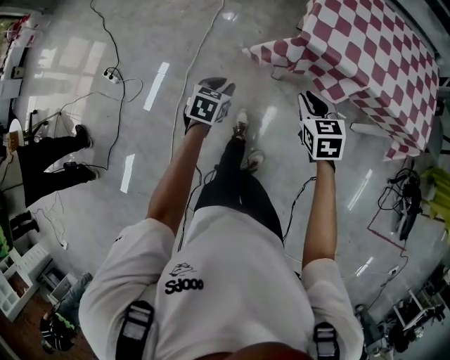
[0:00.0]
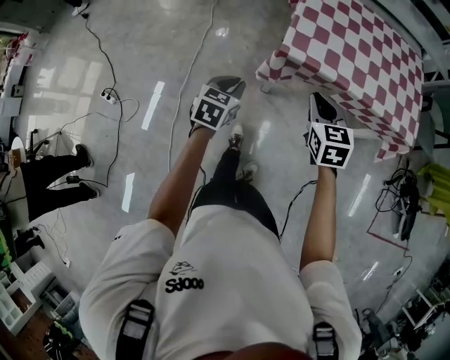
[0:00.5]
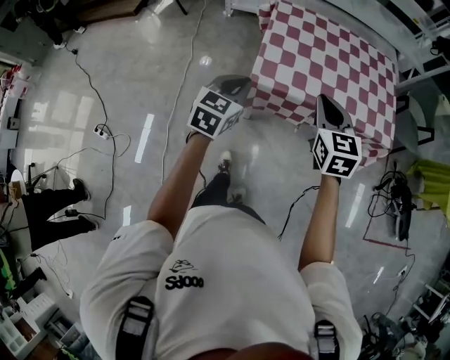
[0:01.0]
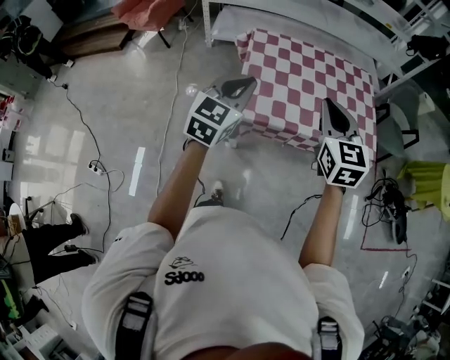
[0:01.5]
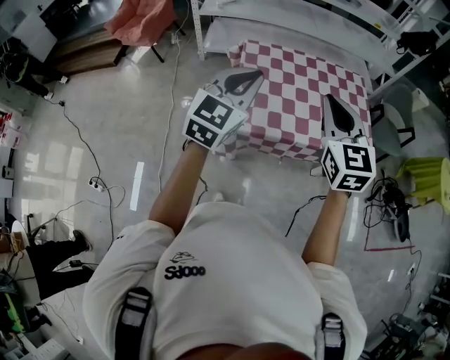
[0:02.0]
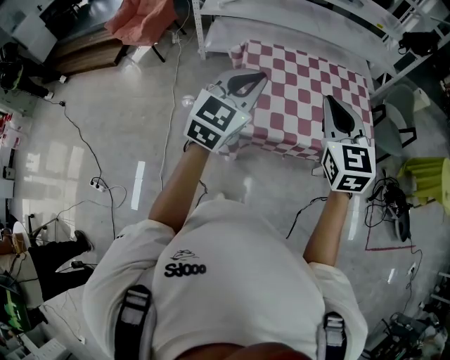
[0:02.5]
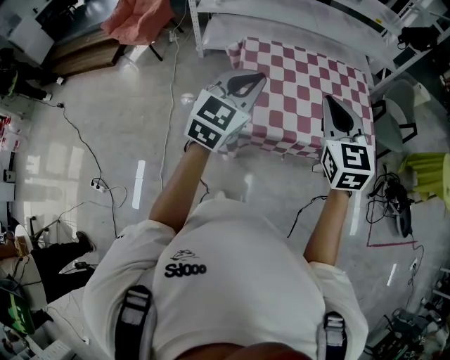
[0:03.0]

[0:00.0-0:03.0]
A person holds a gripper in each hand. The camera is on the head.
0:00.0 to 0:01.5: The left gripper is displaced upward, forward and to the right by approximately 50 cm, and tips its fingers upward by about 40 degrees; the right gripper goes some 40 cm upward, to the right and forward, and rotates roughly 40 degrees.
0:01.5 to 0:03.0: The left gripper goes some 5 cm upward.

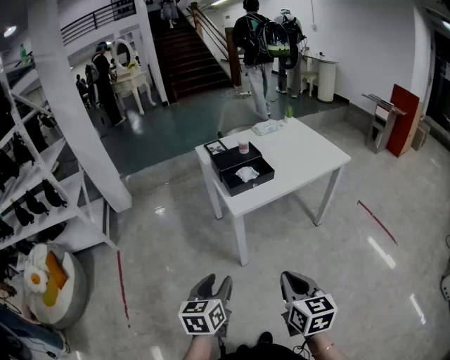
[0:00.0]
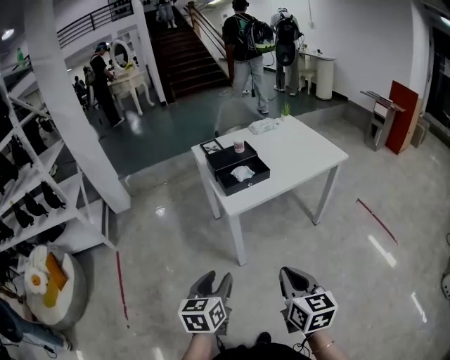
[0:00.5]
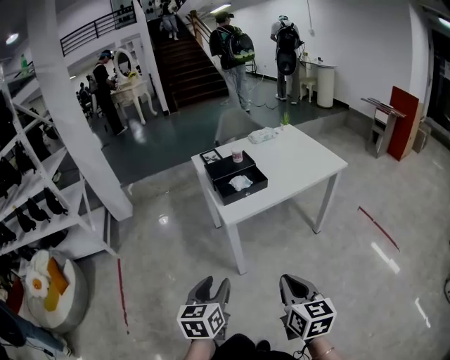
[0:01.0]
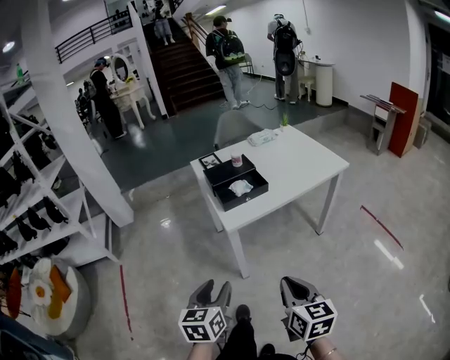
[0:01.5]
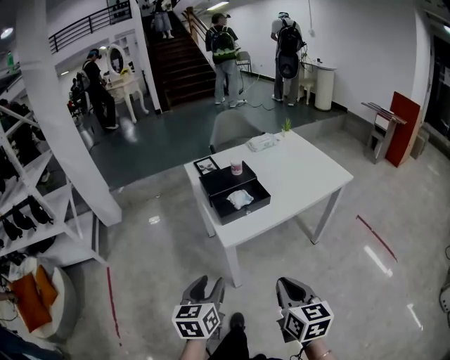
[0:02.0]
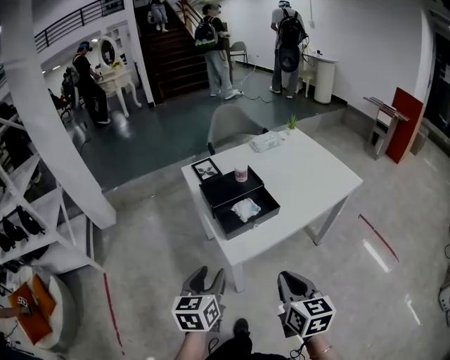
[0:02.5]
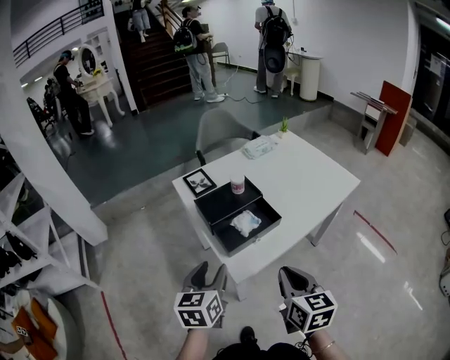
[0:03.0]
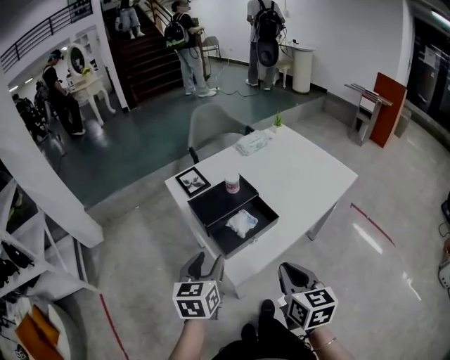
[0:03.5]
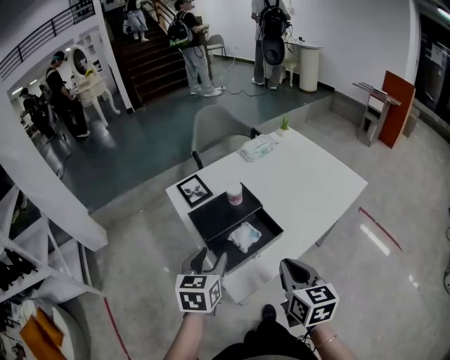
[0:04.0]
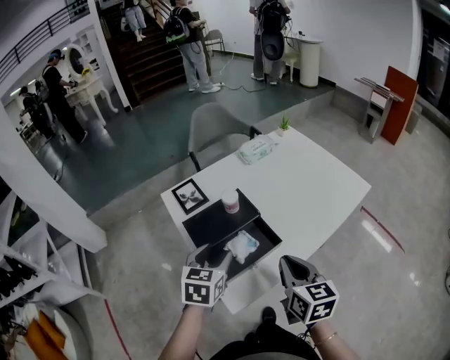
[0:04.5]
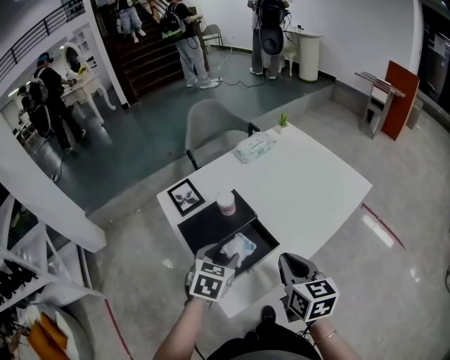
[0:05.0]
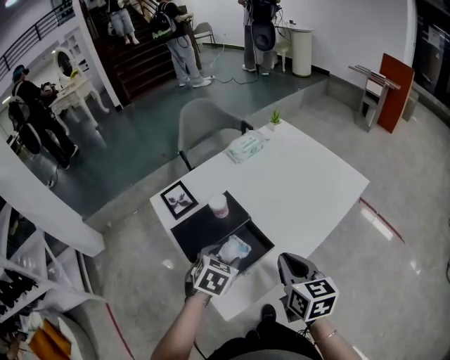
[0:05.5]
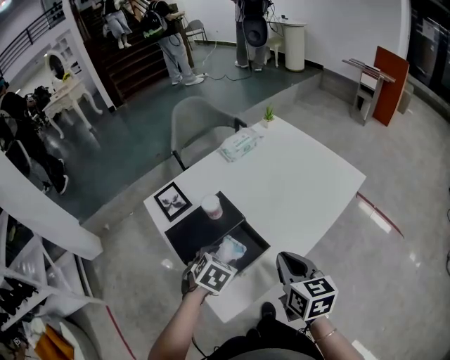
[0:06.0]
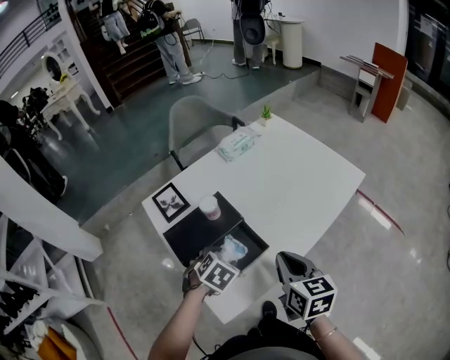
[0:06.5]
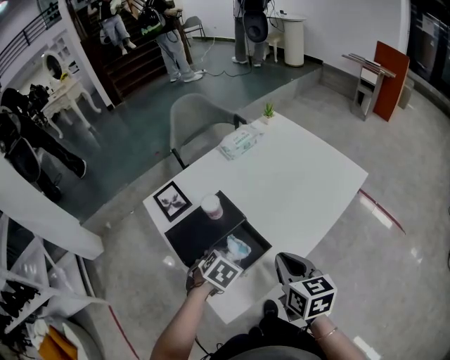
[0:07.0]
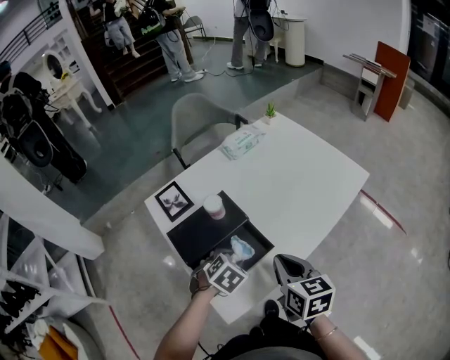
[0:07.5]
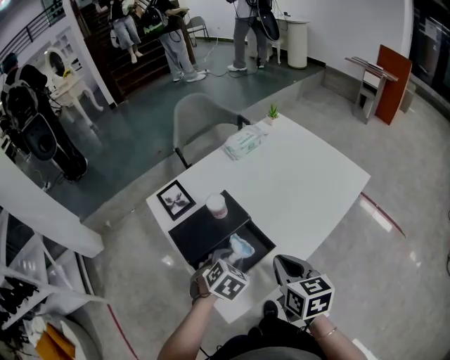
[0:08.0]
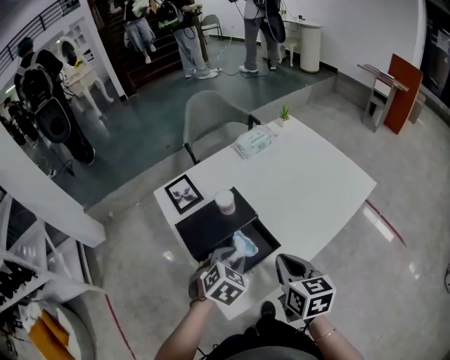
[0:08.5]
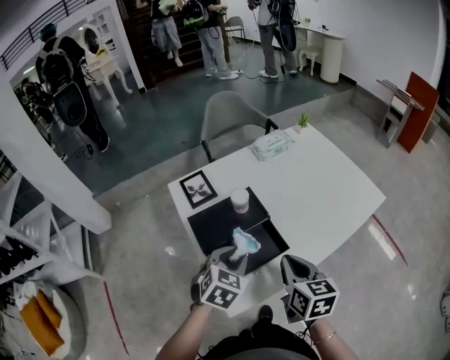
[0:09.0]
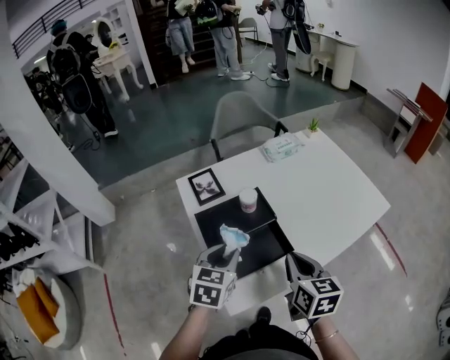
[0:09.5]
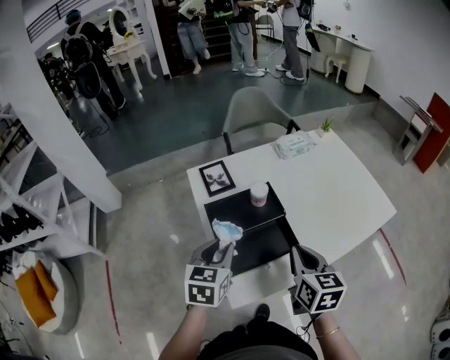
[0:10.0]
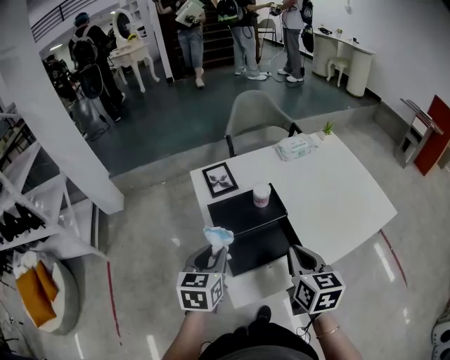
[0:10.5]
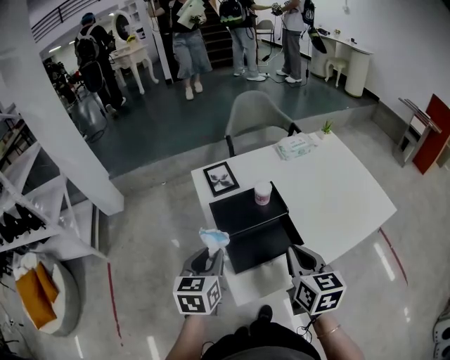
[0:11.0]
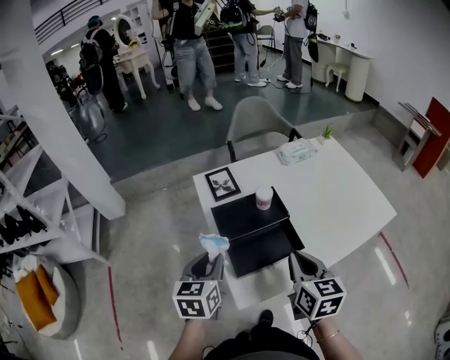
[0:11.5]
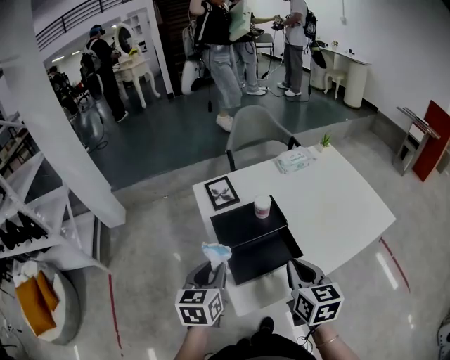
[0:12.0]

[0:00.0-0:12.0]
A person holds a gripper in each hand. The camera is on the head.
0:00.0 to 0:02.0: Both grippers travel together forward, about 15 cm.
0:02.0 to 0:04.0: Both grippers move forward, about 30 cm.
0:04.0 to 0:06.0: The left gripper moves downward, forward and to the right, approximately 15 cm, and tilts its fingers roughly 30 degrees downward. The right gripper travels forward by roughly 10 cm.
0:06.0 to 0:08.0: The left gripper closes up.
0:08.0 to 0:10.0: The left gripper shifts approximately 15 cm to the left and upward, and rotates about 50 degrees.
0:10.0 to 0:12.0: The left gripper ends up some 5 cm from where it was.

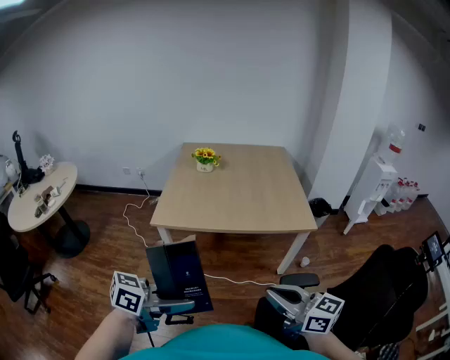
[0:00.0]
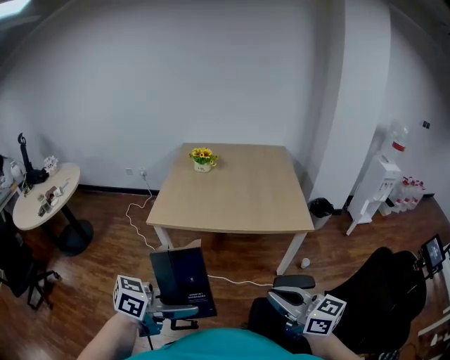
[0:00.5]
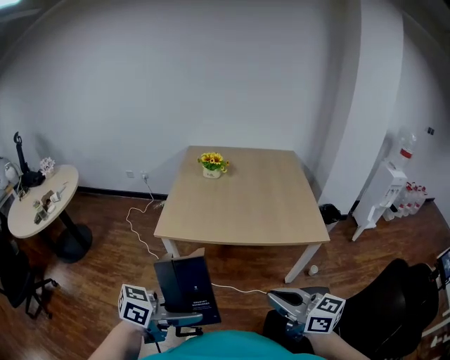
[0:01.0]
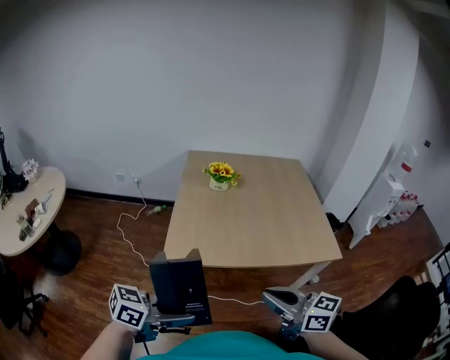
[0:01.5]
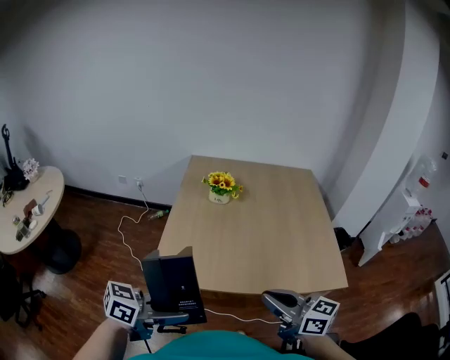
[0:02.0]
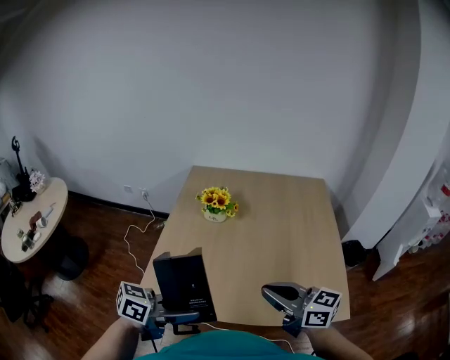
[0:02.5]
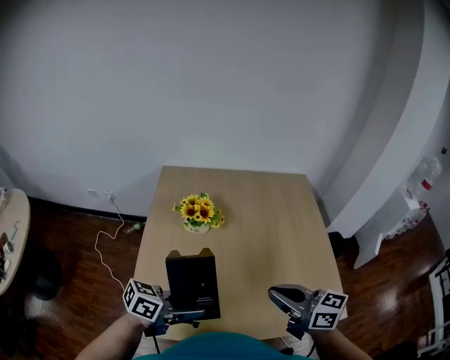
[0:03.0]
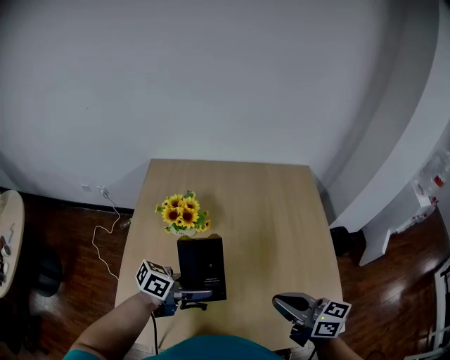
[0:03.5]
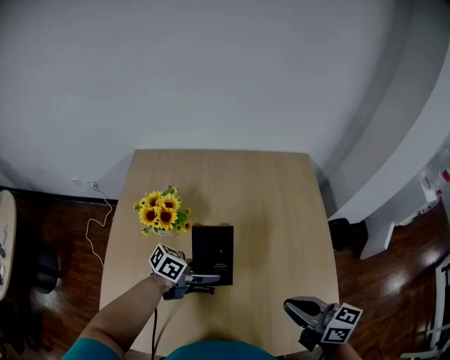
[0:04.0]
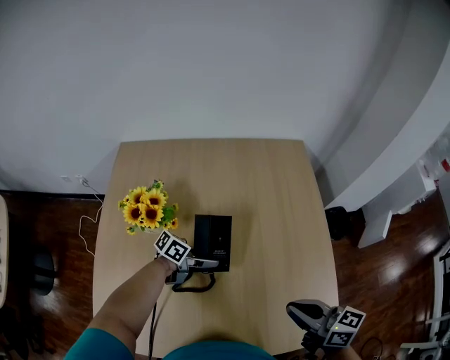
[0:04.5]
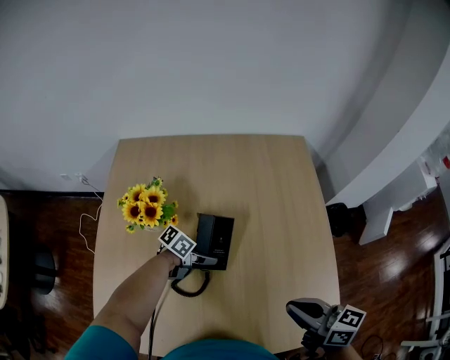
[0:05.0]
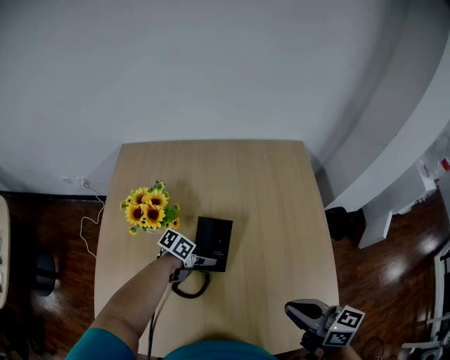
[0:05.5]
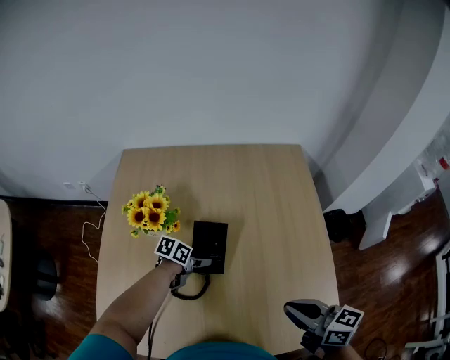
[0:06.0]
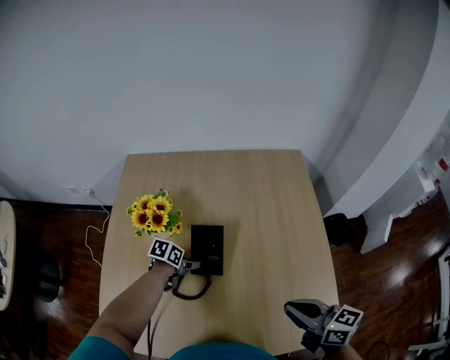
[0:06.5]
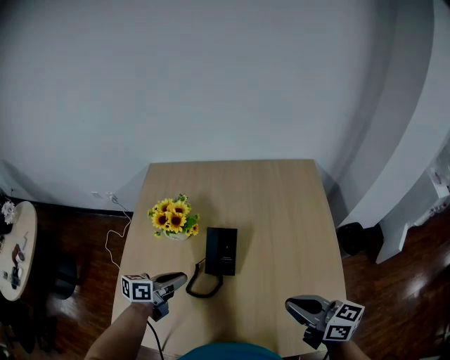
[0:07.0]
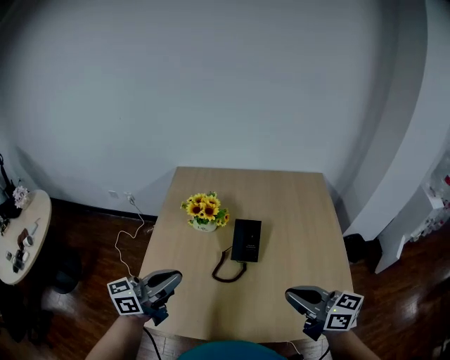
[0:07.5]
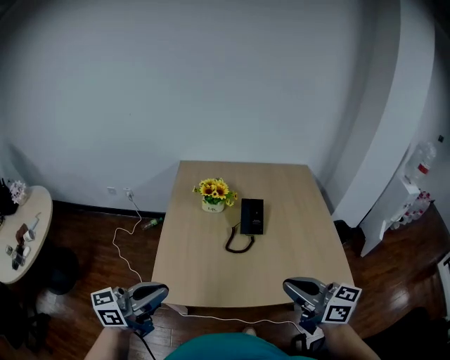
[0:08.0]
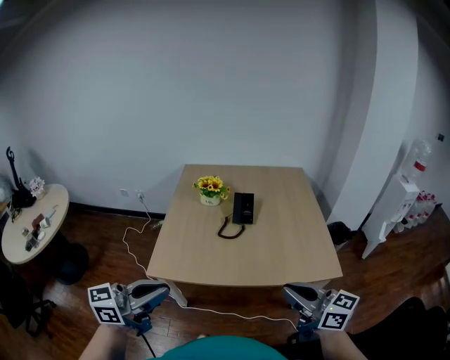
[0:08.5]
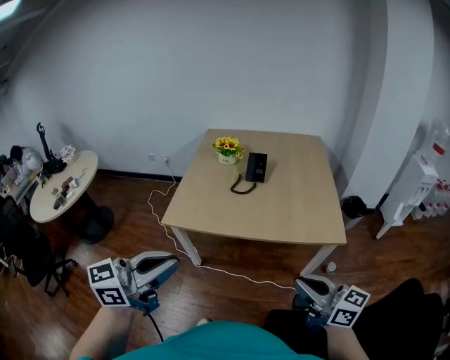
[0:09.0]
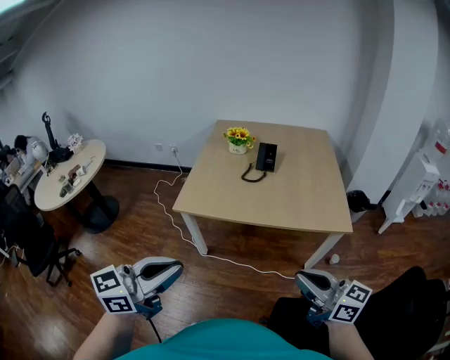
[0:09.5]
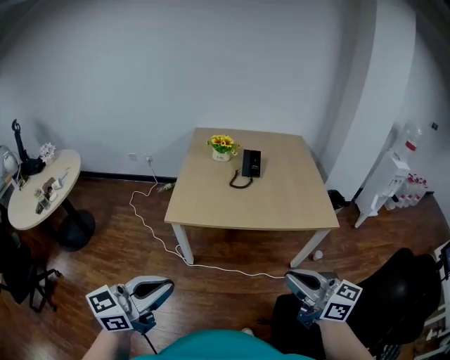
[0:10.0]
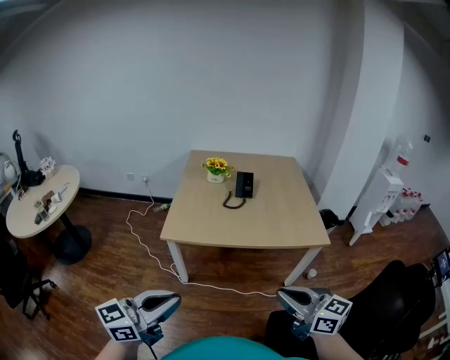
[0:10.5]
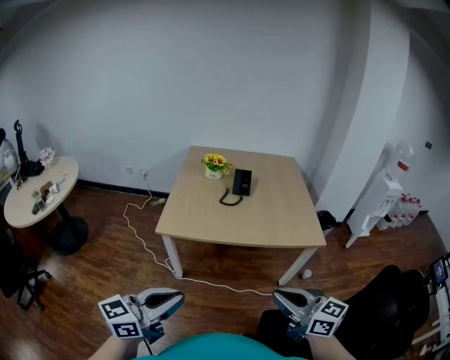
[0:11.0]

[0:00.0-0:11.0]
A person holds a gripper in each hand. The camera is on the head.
0:00.0 to 0:02.0: The right gripper moves approximately 35 cm. Meanwhile the left gripper shifts by roughly 30 cm.
0:02.0 to 0:03.5: The left gripper shifts by about 40 cm. The right gripper shifts by some 30 cm.
0:03.5 to 0:05.5: The left gripper goes roughly 20 cm downward, and changes its angle by approximately 30 degrees, while the right gripper shifts by about 10 cm.
0:05.5 to 0:07.5: The left gripper goes roughly 30 cm upward, tips its fingers upward by some 40 degrees, and closes its fingers. Meanwhile the right gripper moves some 15 cm.
0:07.5 to 0:09.0: Both grippers are carried backward, about 40 cm.
0:09.0 to 0:11.0: The right gripper is displaced to the left and backward by approximately 15 cm. Meanwhile the left gripper moves backward, downward and to the left, some 15 cm.

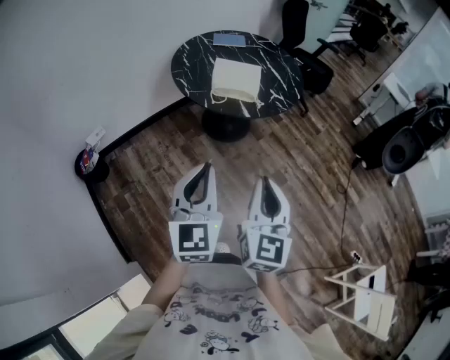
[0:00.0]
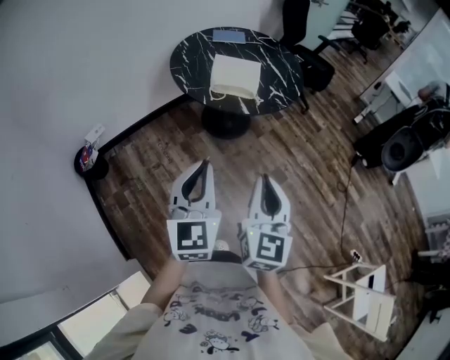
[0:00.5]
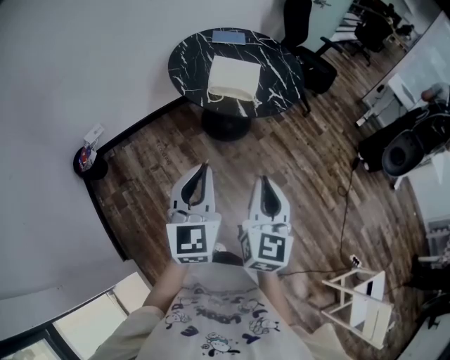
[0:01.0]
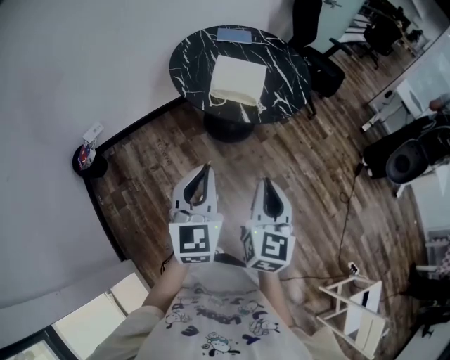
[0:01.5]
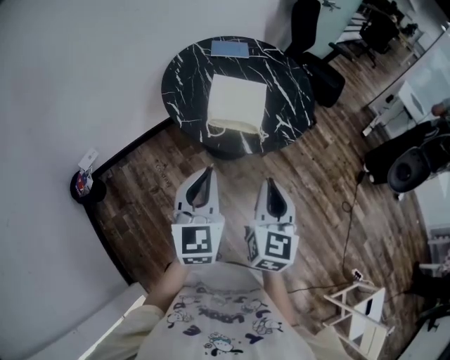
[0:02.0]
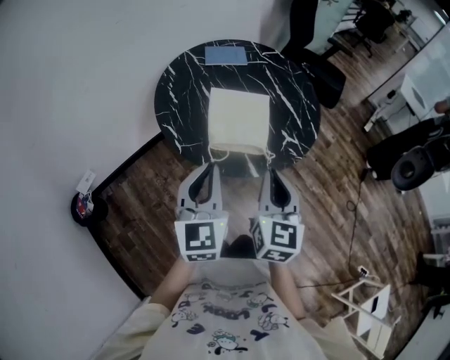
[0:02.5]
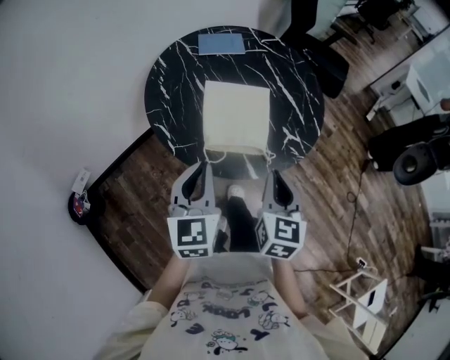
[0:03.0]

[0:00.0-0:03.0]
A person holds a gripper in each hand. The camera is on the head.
0:00.0 to 0:01.5: The left gripper shifts approximately 5 cm forward. The right gripper travels forward and downward by approximately 10 cm.
0:01.5 to 0:03.0: The two grippers go roughly 35 cm forward.
